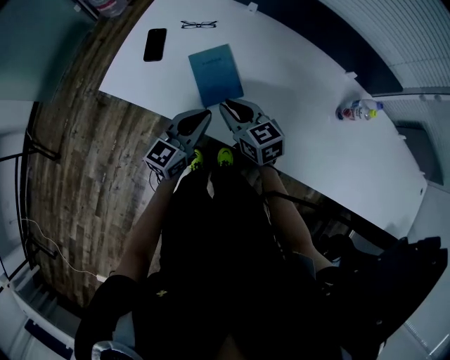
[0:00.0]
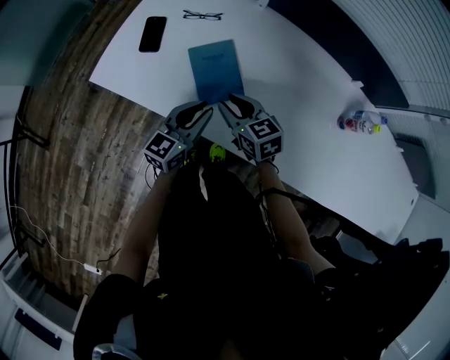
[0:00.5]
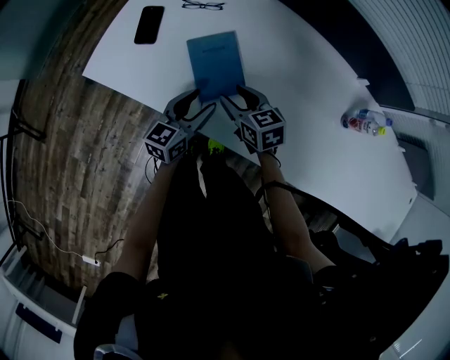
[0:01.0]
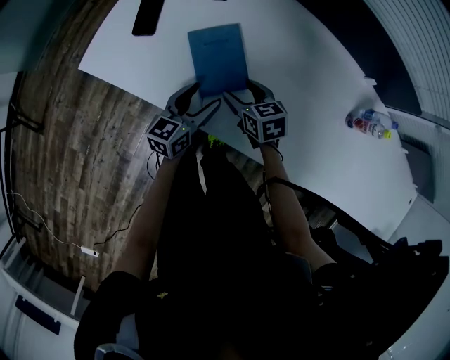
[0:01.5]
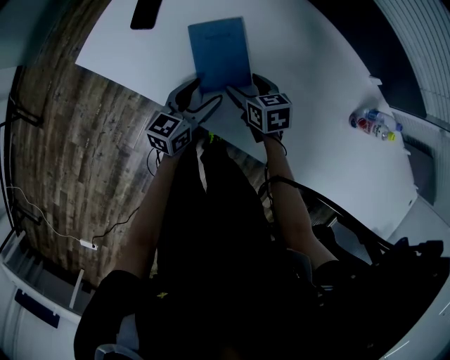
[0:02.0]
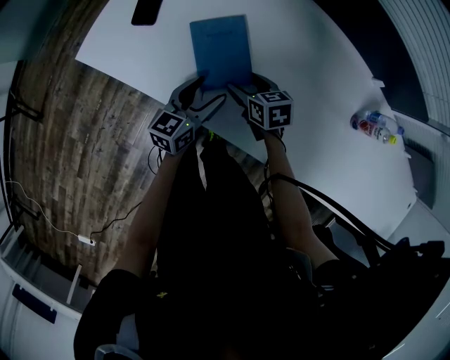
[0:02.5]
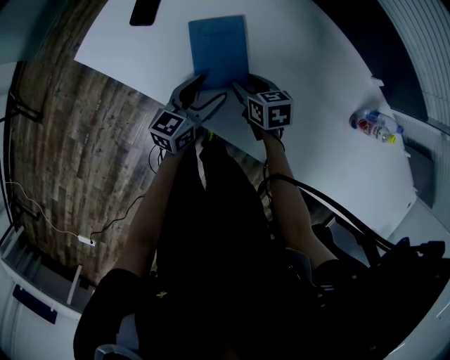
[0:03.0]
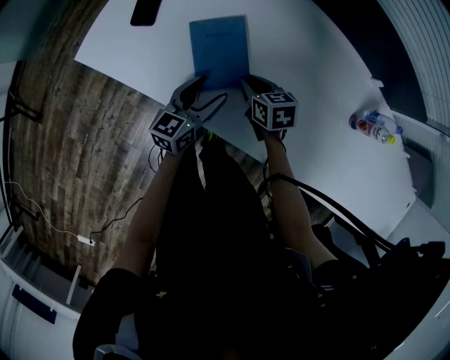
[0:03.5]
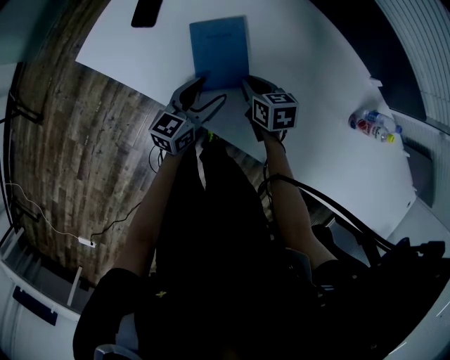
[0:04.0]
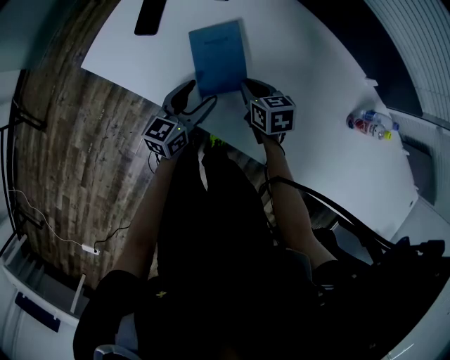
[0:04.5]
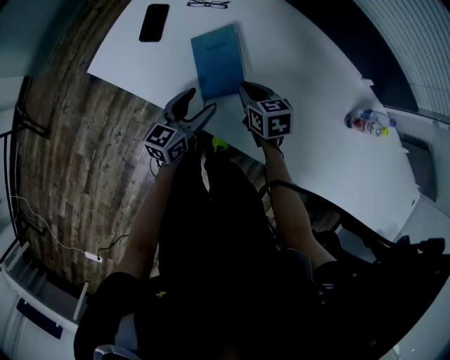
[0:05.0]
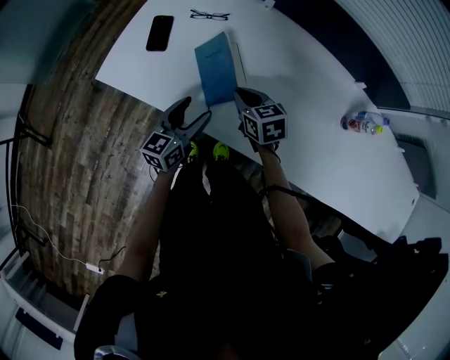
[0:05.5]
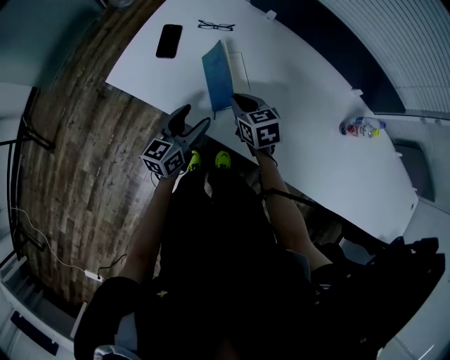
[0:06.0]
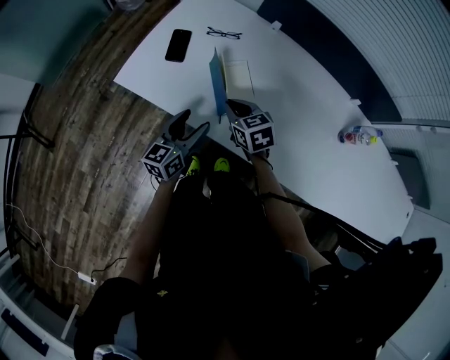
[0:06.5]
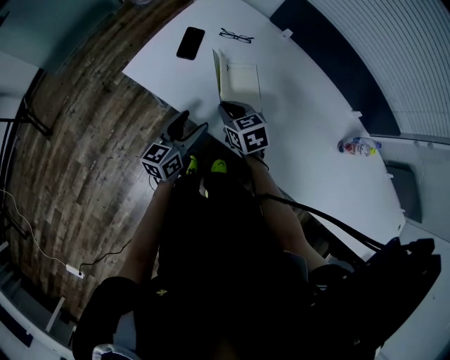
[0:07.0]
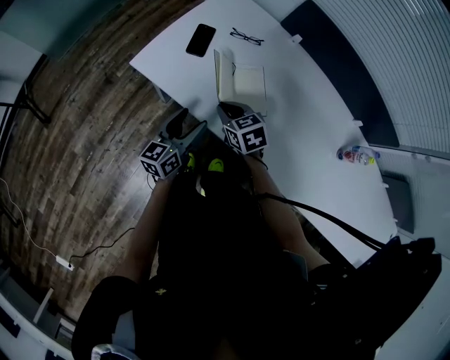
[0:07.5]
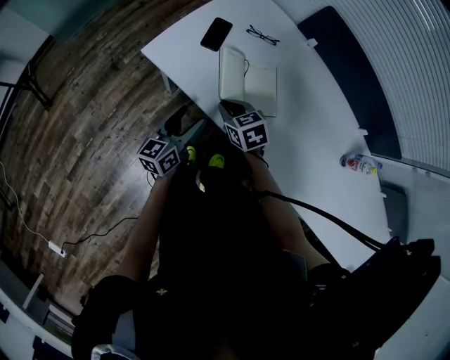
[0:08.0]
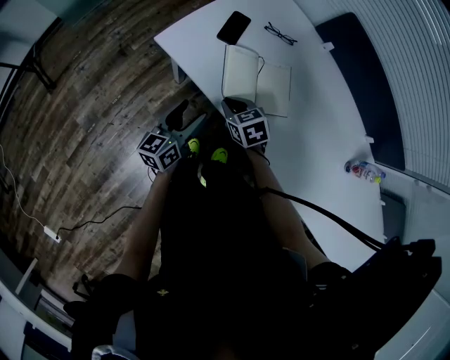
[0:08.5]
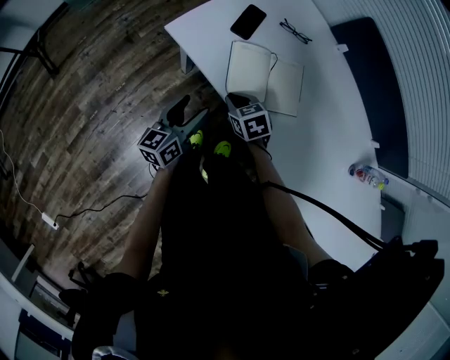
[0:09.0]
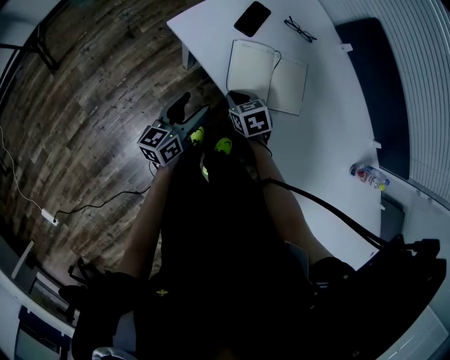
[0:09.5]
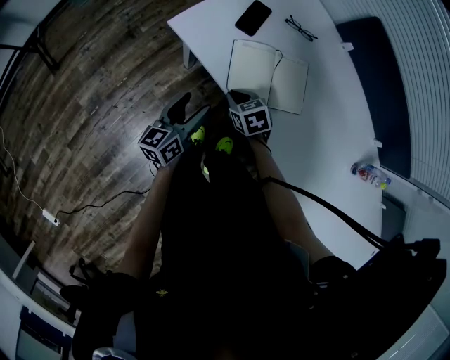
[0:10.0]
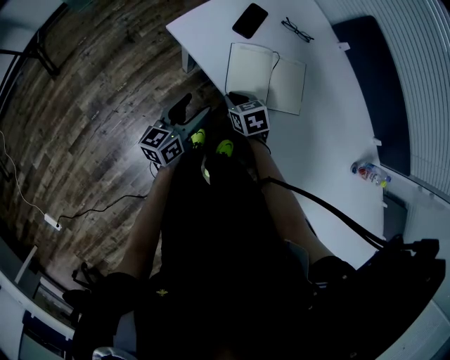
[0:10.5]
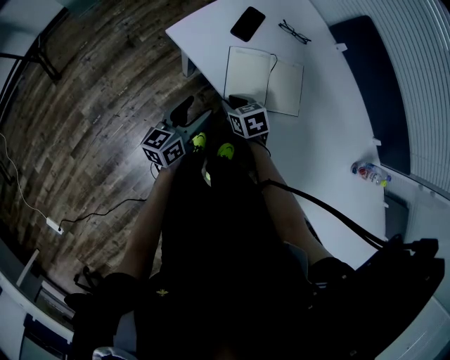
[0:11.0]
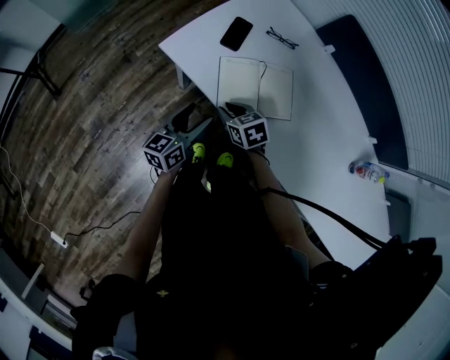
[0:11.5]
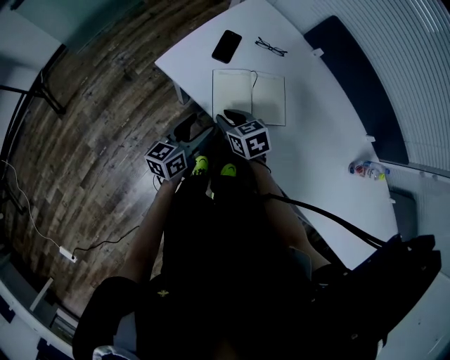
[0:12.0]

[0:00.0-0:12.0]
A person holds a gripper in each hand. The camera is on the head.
0:00.0 to 0:02.0: The left gripper is displaced downward and forward by about 15 cm, turns by some 20 degrees, and opens up. The right gripper heads downward, covering some 15 cm, turns by some 20 degrees, and opens.
0:02.0 to 0:04.0: The right gripper closes.
0:04.0 to 0:06.0: The right gripper is displaced upward and to the left by about 10 cm. The left gripper is displaced to the left and upward by some 10 cm.
0:06.0 to 0:08.0: Both grippers travel together to the left, about 10 cm.
0:08.0 to 0:10.0: The left gripper heads to the left, covering some 5 cm, while the right gripper is displaced downward by approximately 10 cm.
0:10.0 to 0:12.0: The right gripper goes some 10 cm upward. Meanwhile the left gripper travels upward by approximately 5 cm.

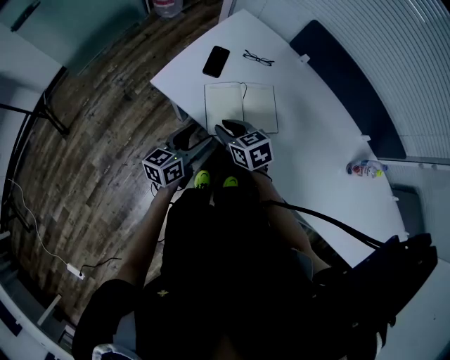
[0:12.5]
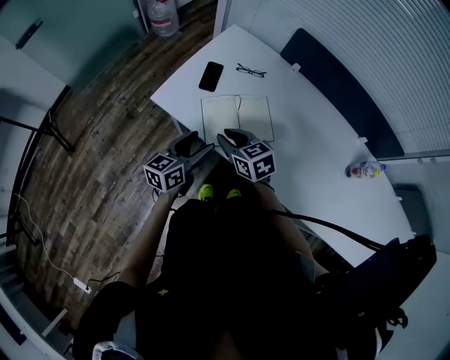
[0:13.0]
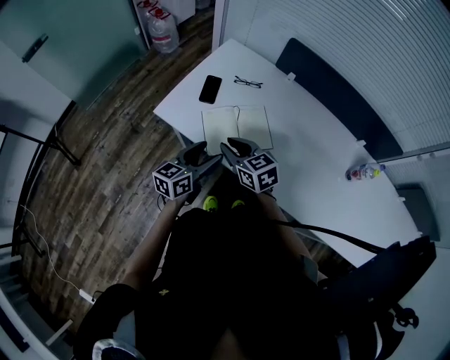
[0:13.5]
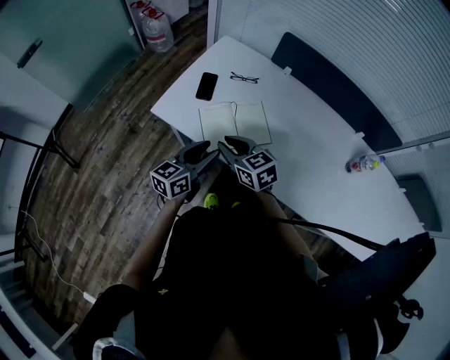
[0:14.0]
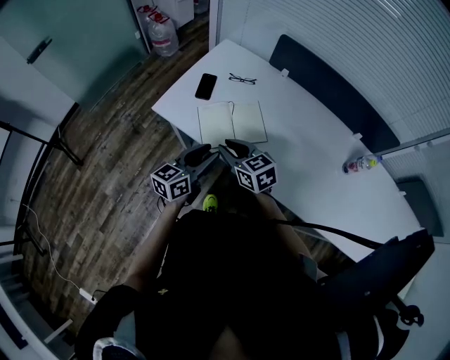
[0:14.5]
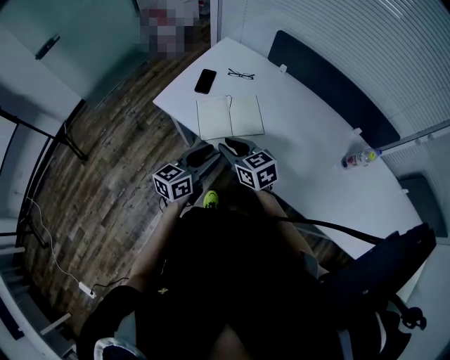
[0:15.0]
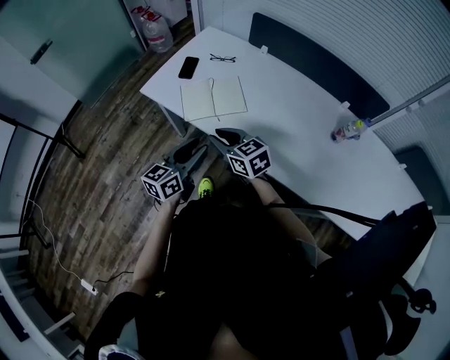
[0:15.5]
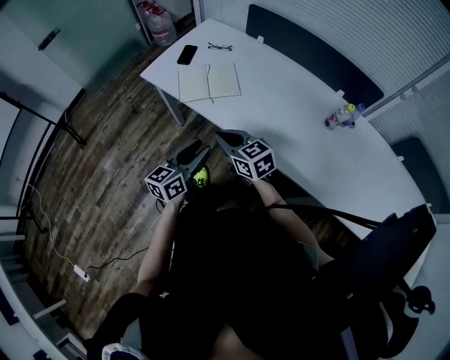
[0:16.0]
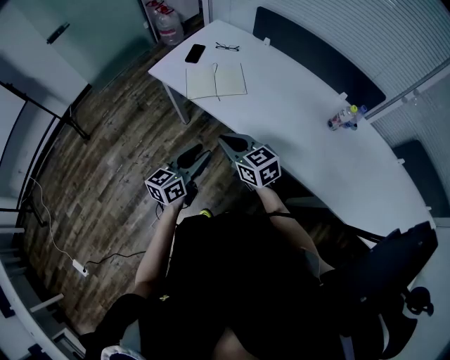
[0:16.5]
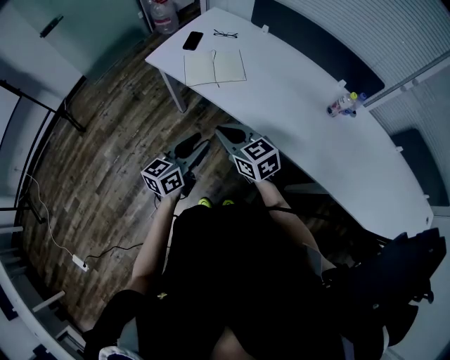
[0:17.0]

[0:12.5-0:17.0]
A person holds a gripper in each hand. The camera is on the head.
0:12.5 to 0:14.5: The right gripper moves upward and backward, roughly 10 cm; the left gripper goes roughly 10 cm upward, to the right and backward, and closes up.
0:14.5 to 0:17.0: The grippers both shift backward by roughly 25 cm.

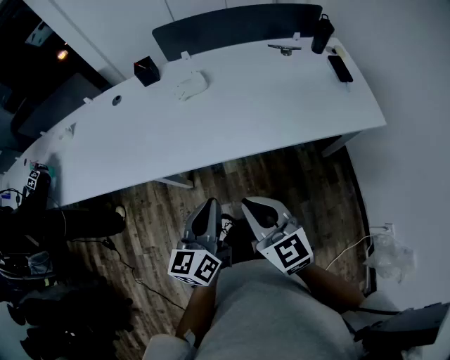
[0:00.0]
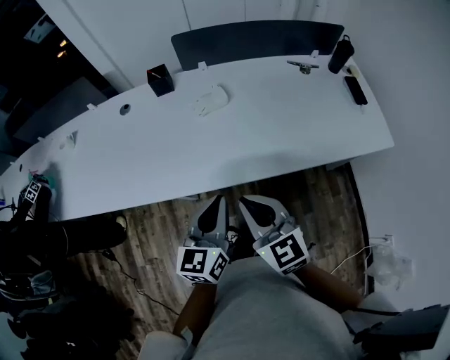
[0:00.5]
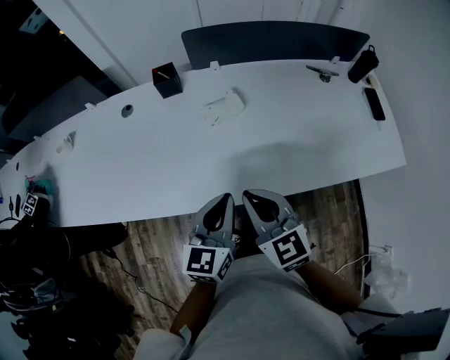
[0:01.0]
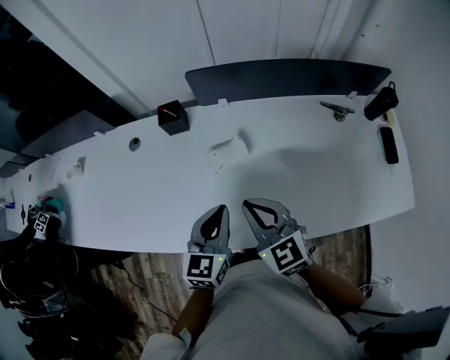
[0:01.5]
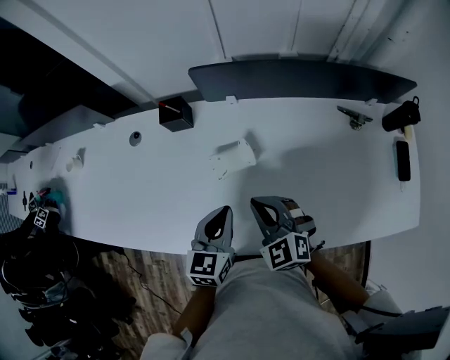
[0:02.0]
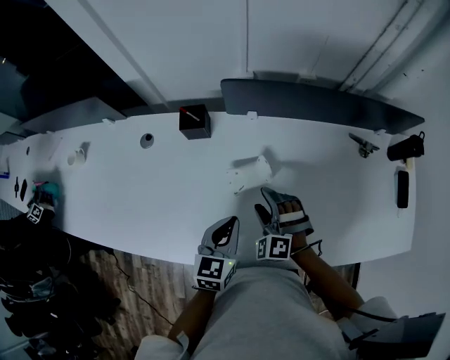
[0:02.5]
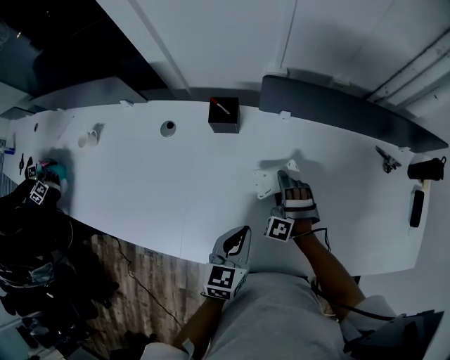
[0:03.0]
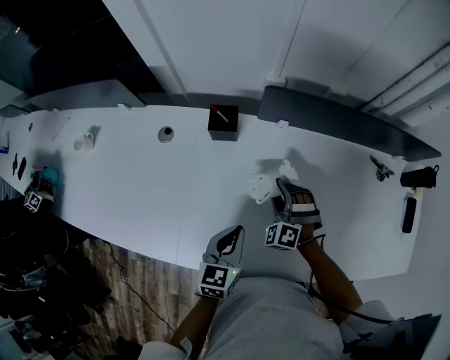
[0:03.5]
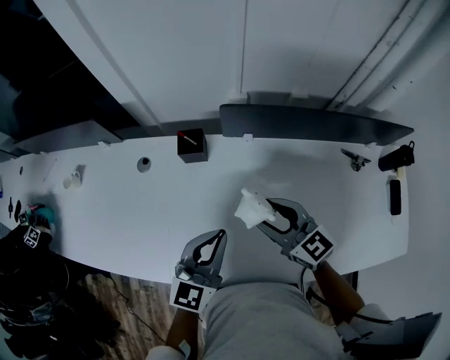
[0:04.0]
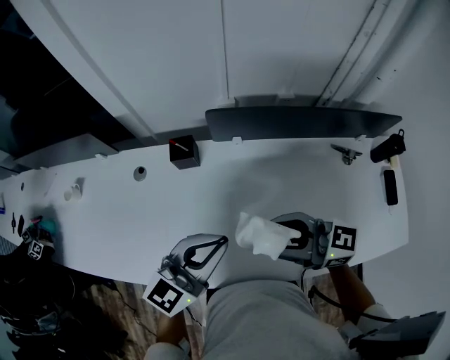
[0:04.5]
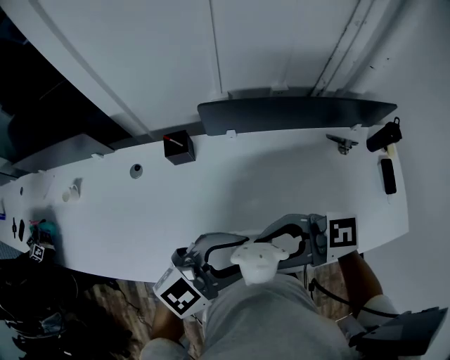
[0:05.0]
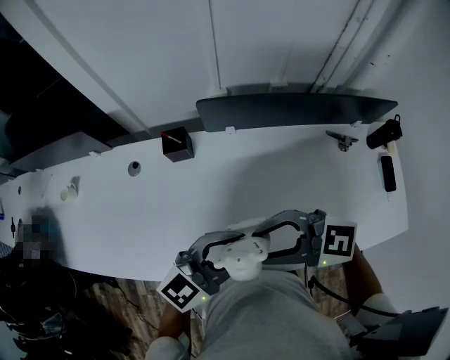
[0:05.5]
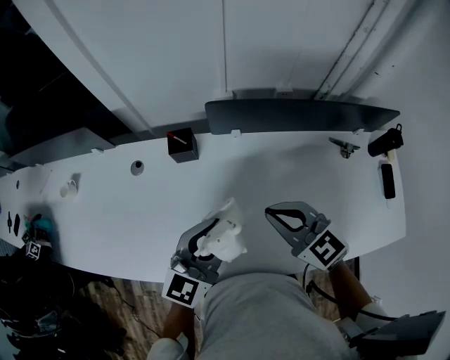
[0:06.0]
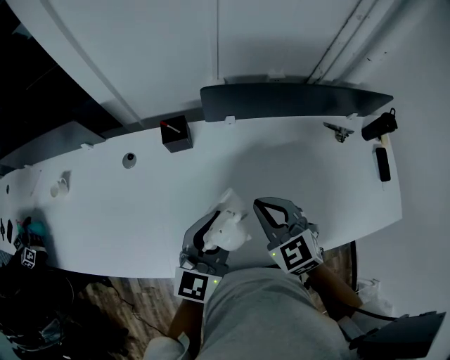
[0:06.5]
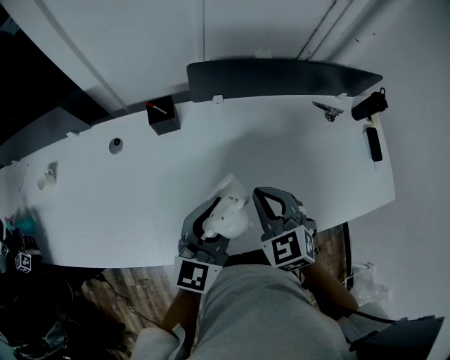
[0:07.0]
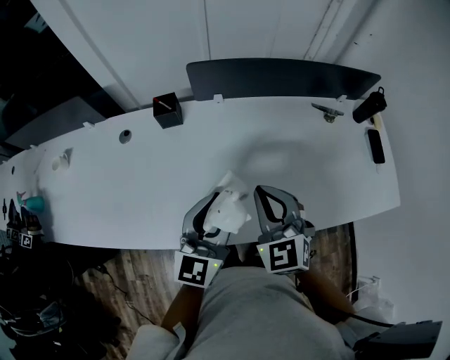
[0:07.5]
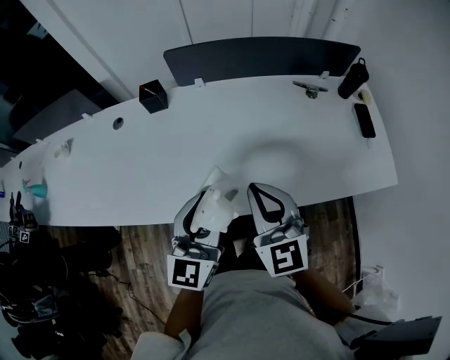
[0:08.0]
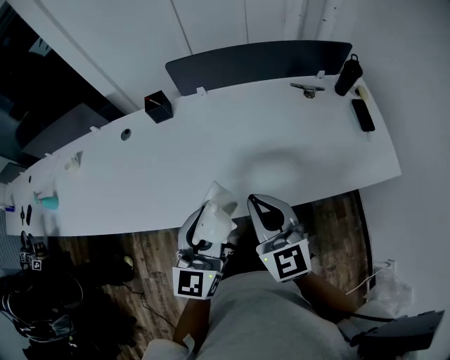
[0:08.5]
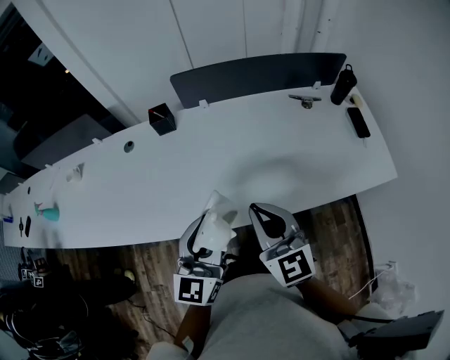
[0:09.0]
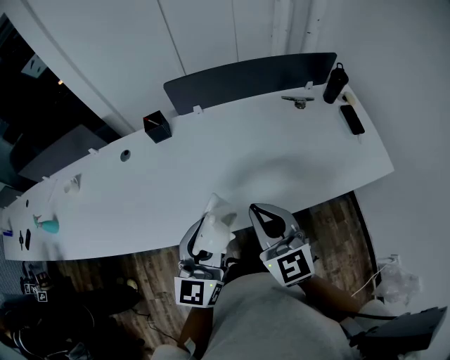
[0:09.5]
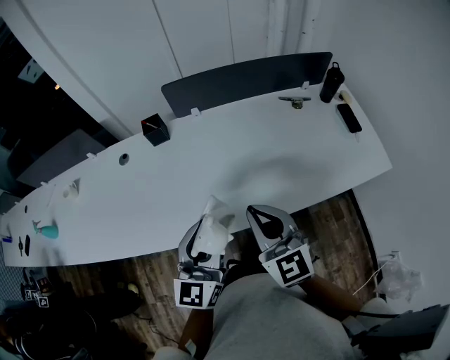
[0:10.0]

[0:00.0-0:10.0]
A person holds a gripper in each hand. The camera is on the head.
0:00.0 to 0:02.0: Both grippers travel together forward, approximately 40 cm. The left gripper changes its angle by roughly 20 degrees. Meanwhile the right gripper swivels approximately 30 degrees.
0:02.0 to 0:04.0: The left gripper shifts approximately 10 cm upward and to the left, and turns by some 20 degrees, while the right gripper is displaced forward by some 10 cm, travels downward and back again, approximately 15 cm each way, turns by about 30 degrees, and opens its fingers.
0:04.0 to 0:06.0: The right gripper closes. Meanwhile the left gripper opens its fingers.
0:06.0 to 0:08.0: Both grippers move backward and to the right, roughly 20 cm. The right gripper changes its angle by some 30 degrees.
0:08.0 to 0:10.0: The right gripper moves roughly 5 cm. Meanwhile the left gripper heads to the left, covering some 5 cm.
